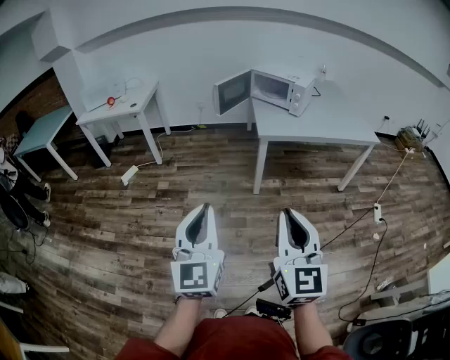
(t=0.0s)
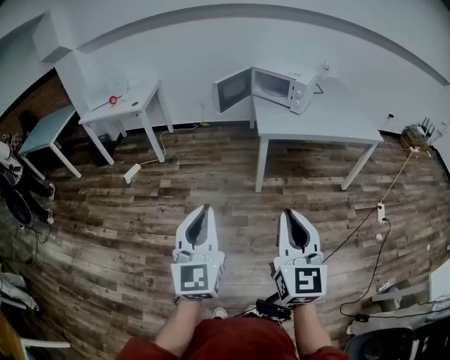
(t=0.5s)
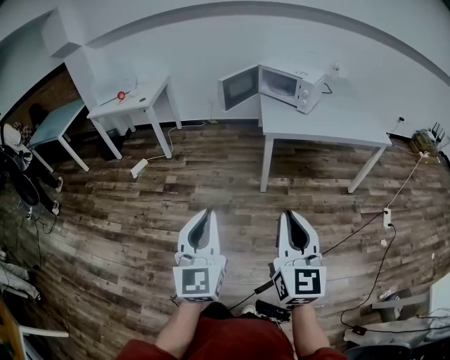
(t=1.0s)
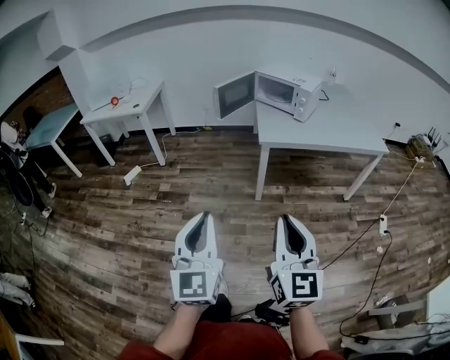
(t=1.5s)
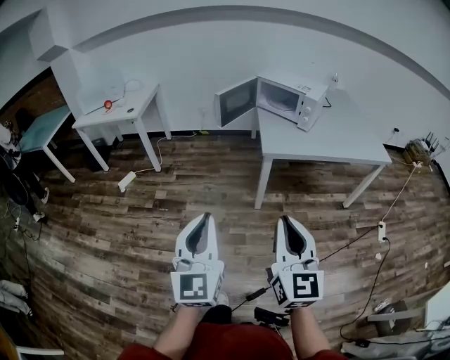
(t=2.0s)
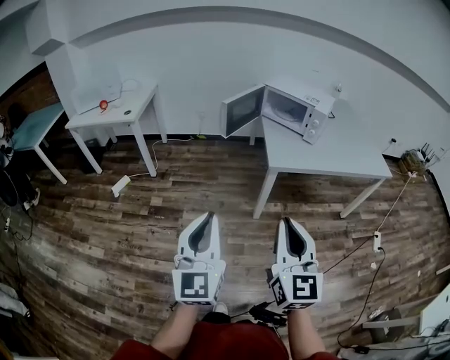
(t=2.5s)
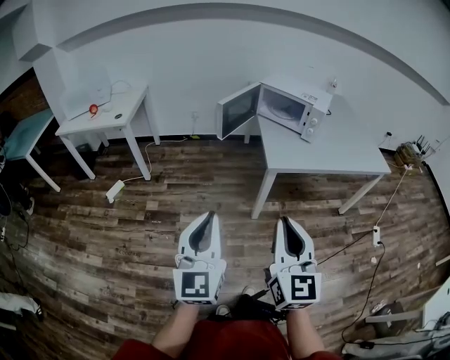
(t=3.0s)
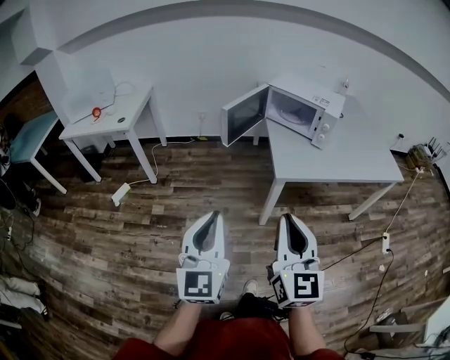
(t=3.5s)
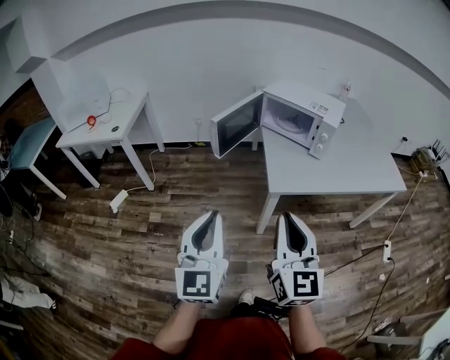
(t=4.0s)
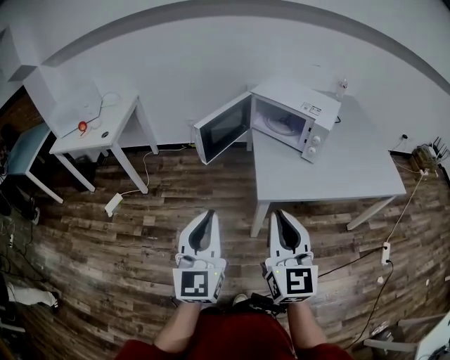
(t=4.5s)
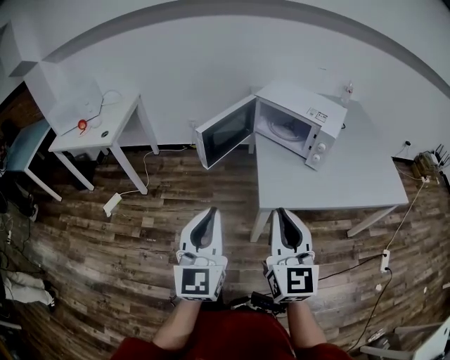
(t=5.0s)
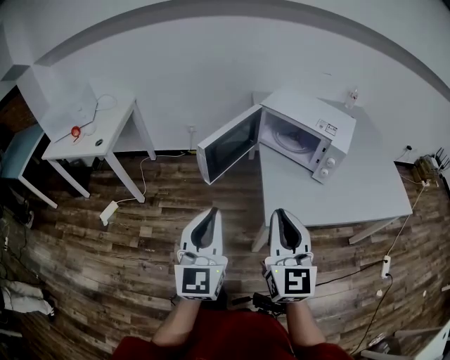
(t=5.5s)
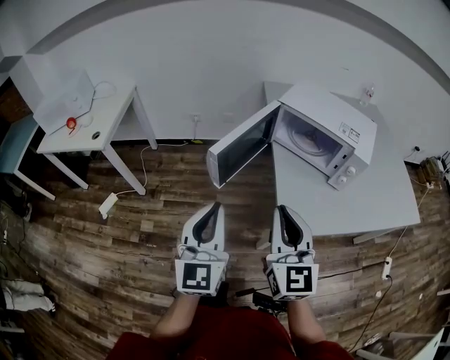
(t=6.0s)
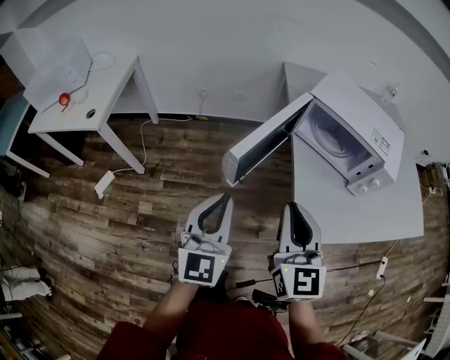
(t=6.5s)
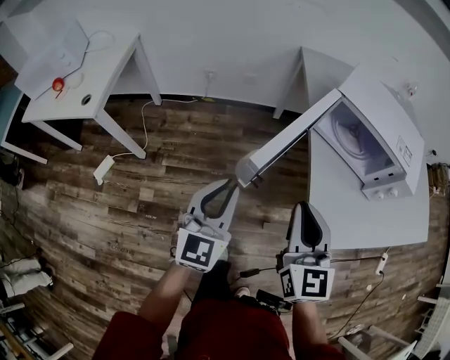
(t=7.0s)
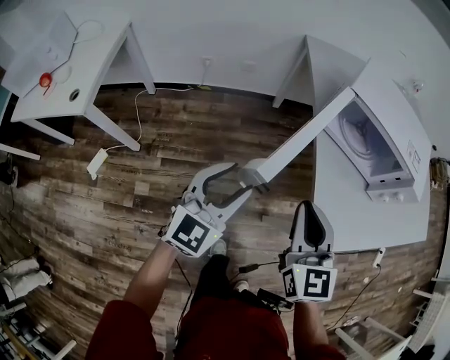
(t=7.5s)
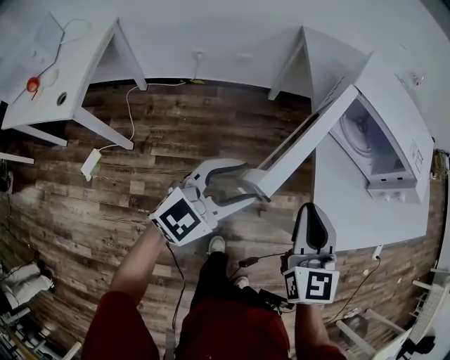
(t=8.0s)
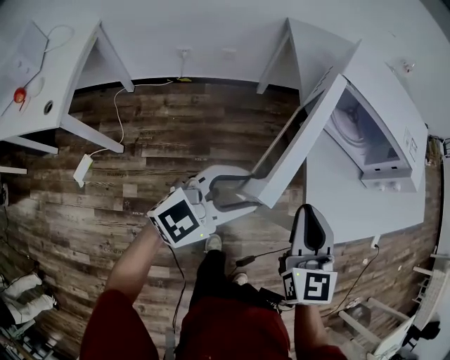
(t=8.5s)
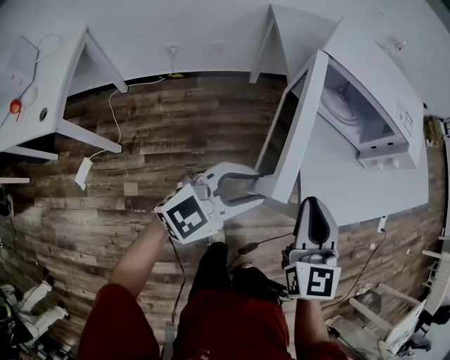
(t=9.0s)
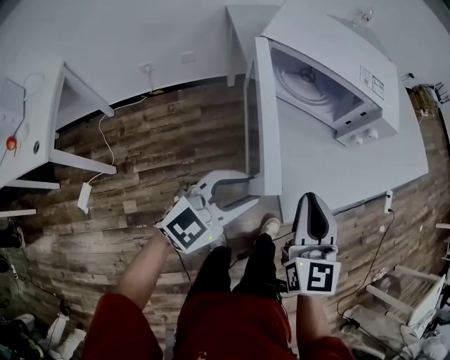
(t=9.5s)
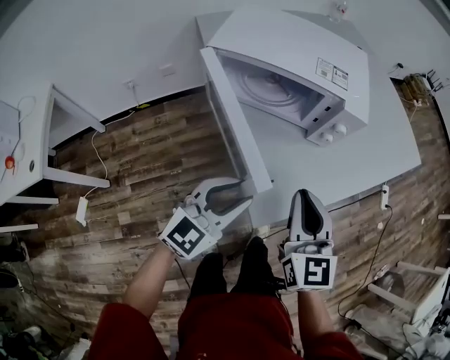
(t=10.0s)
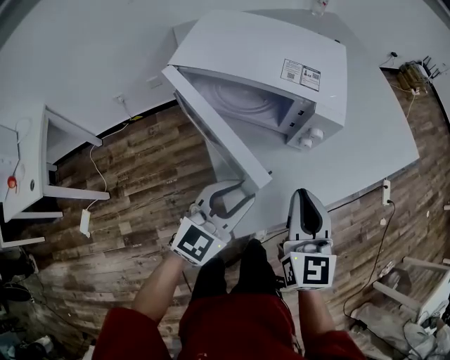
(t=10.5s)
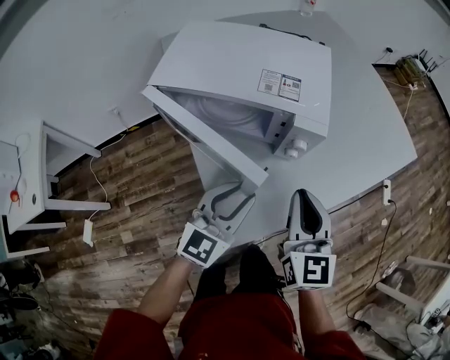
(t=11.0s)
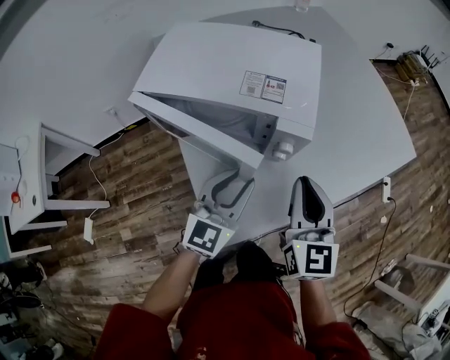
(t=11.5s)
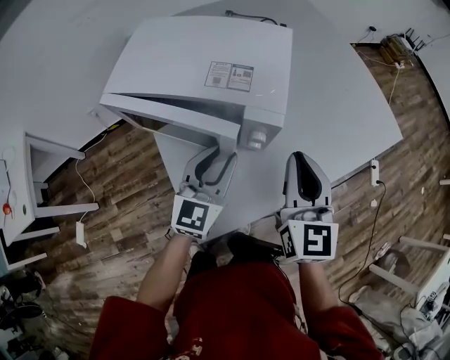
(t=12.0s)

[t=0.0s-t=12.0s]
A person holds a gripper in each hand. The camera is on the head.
t=0.0s to t=2.0s: The grippers both shift forward by roughly 15 cm.
t=2.0s to t=4.0s: Both grippers move forward, roughly 30 cm.
t=4.0s to t=6.0s: Both grippers move forward, approximately 30 cm.
t=6.0s to t=8.0s: The left gripper moves roughly 25 cm, rotates roughly 50 degrees, and opens its fingers. Meanwhile the right gripper shifts by about 25 cm.
t=8.0s to t=10.0s: The grippers both shift to the right by roughly 25 cm. The left gripper closes its fingers.
t=10.0s to t=12.0s: The two grippers go about 25 cm forward and to the right. The left gripper rotates roughly 20 degrees.

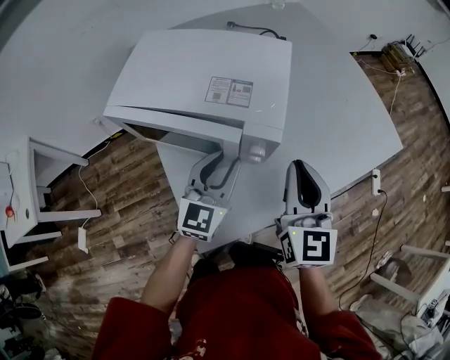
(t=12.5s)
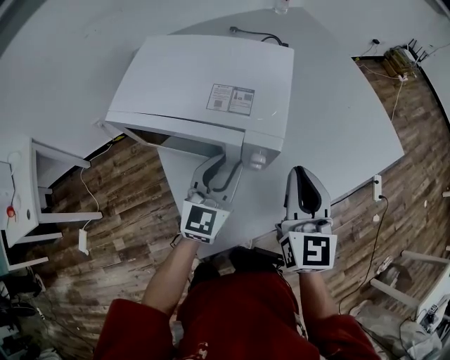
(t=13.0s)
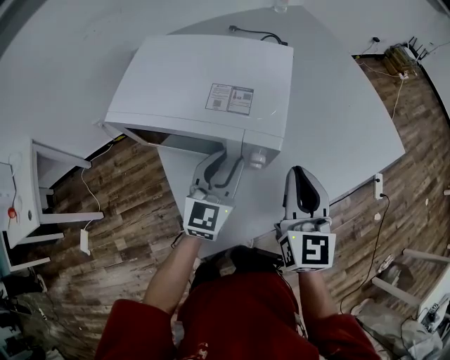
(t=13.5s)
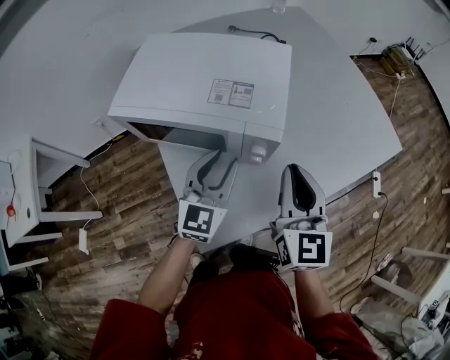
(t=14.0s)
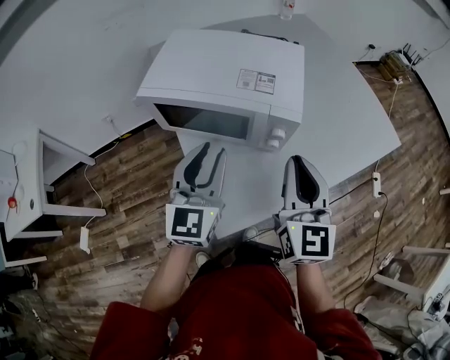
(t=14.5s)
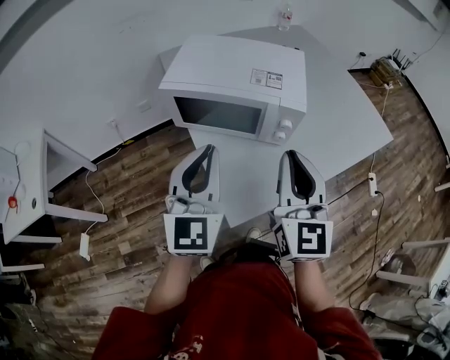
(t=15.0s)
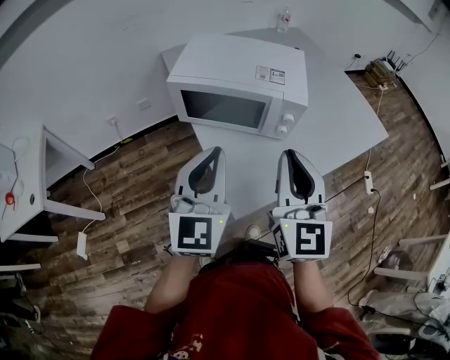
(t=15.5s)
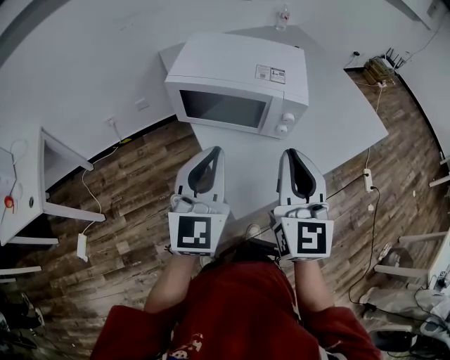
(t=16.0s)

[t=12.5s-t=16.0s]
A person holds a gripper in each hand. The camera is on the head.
t=12.5s to t=14.5s: The left gripper shifts approximately 15 cm to the left, upward and backward, while the right gripper shifts about 10 cm backward and to the left.
t=14.5s to t=16.0s: The right gripper heads backward, to the left and upward, covering about 15 cm, while the left gripper shifts some 15 cm backward, upward and to the left, and closes up.

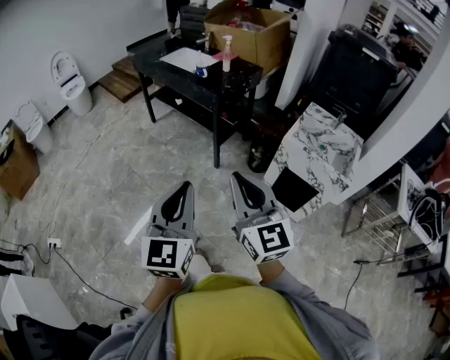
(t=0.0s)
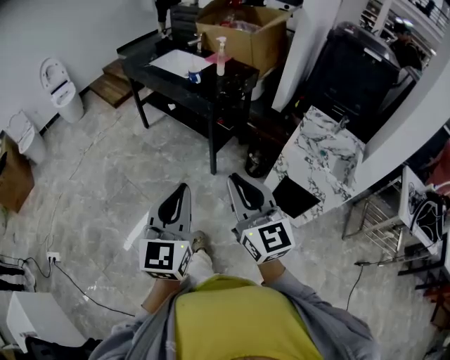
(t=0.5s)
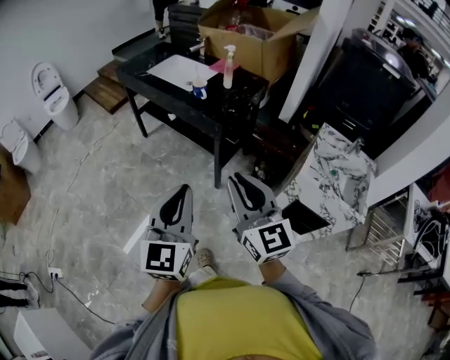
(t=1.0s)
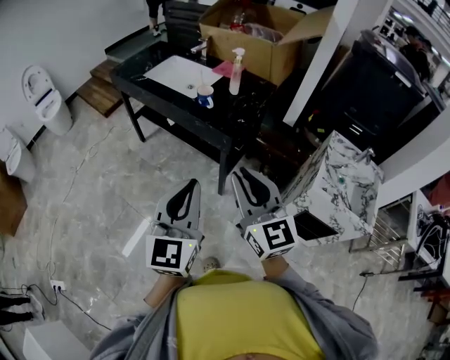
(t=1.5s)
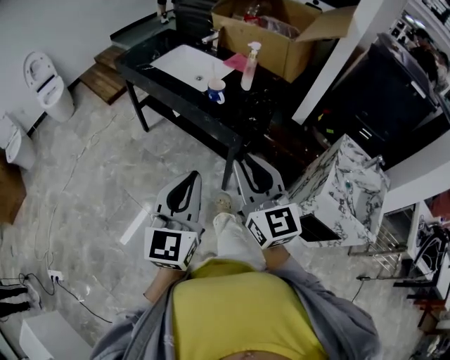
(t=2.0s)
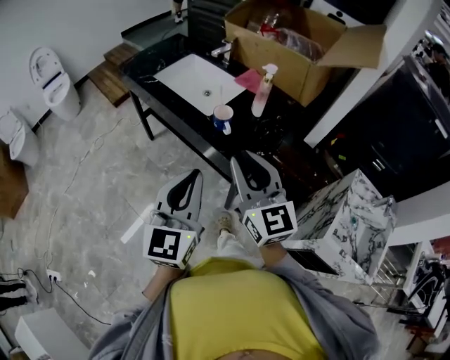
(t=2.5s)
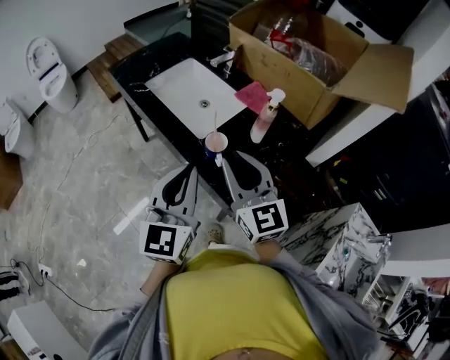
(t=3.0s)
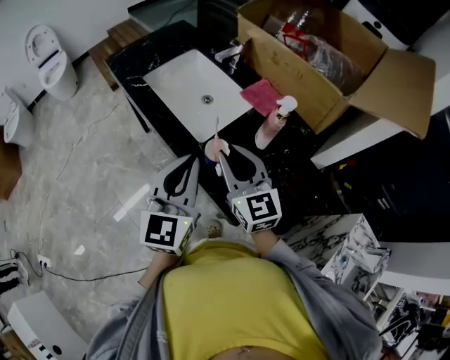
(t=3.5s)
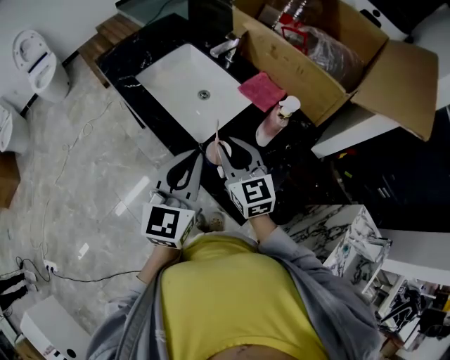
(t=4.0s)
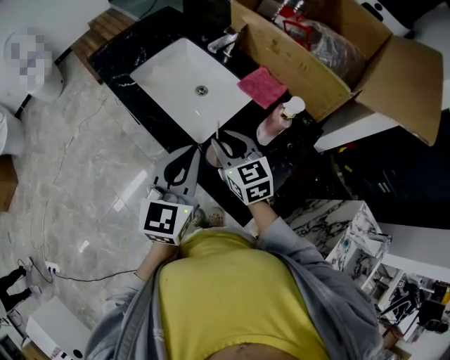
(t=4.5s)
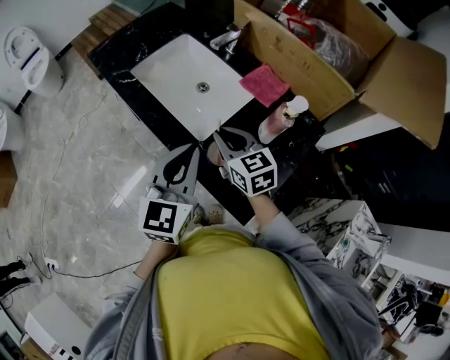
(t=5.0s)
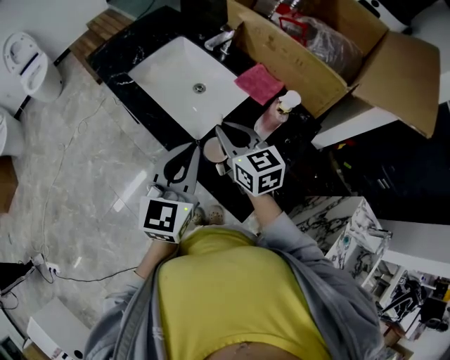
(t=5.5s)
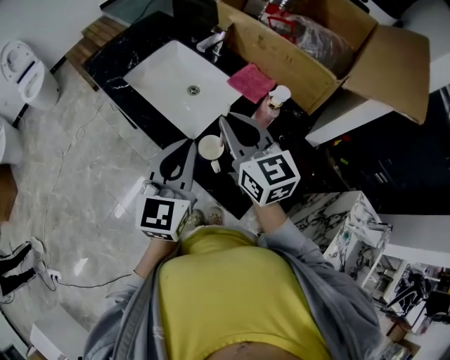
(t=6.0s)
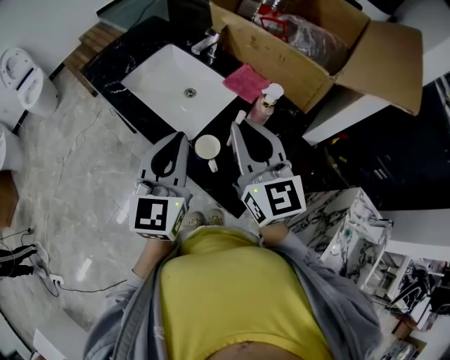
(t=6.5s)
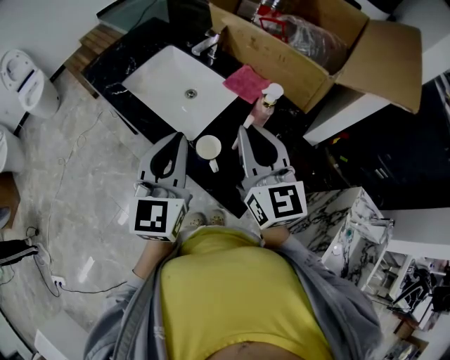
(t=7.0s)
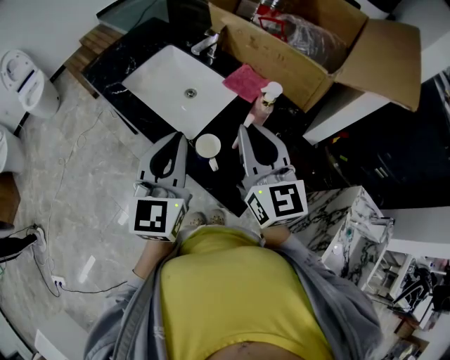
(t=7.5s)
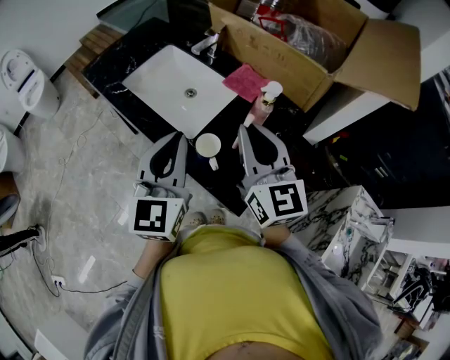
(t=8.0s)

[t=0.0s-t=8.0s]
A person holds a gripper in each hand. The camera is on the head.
t=0.0s to t=2.0s: Both grippers are carried forward, roughly 50 cm.
t=2.0s to t=4.0s: Both grippers are carried forward, roughly 40 cm.
t=4.0s to t=6.0s: The right gripper shifts about 10 cm upward.
t=6.0s to t=8.0s: The right gripper travels backward by some 5 cm.

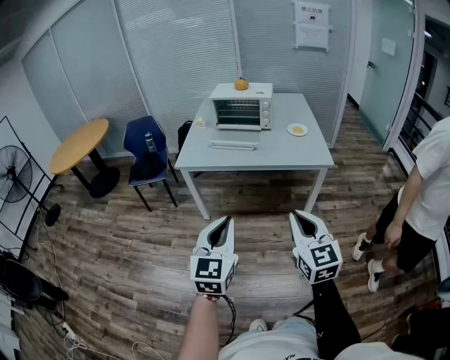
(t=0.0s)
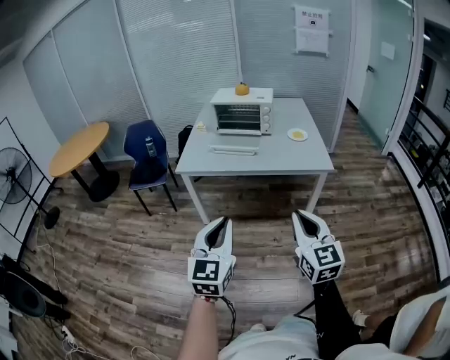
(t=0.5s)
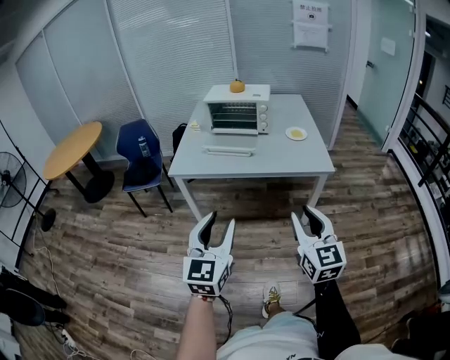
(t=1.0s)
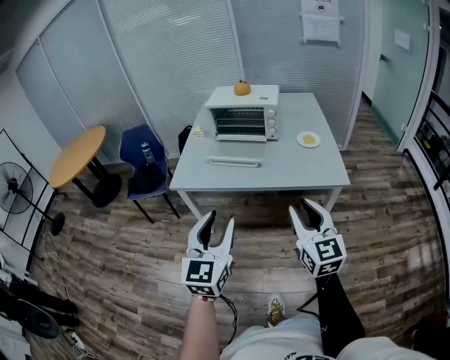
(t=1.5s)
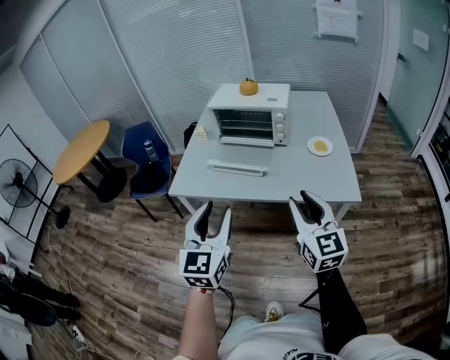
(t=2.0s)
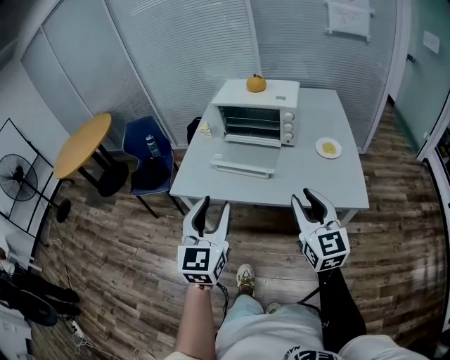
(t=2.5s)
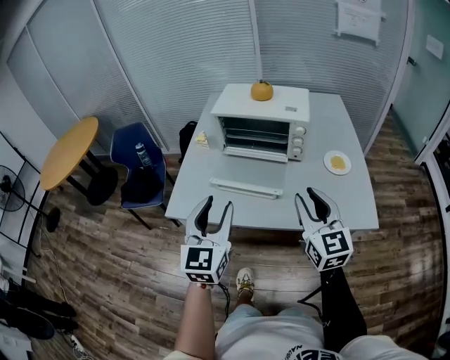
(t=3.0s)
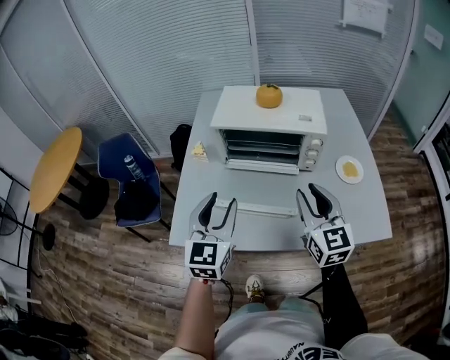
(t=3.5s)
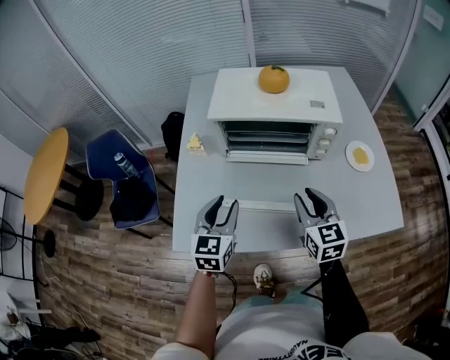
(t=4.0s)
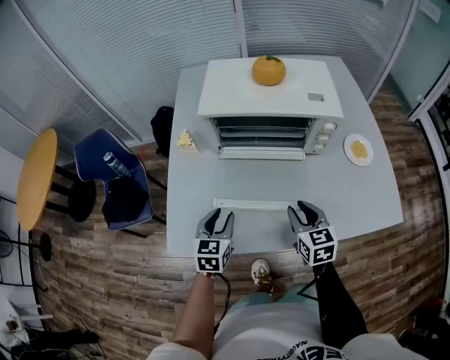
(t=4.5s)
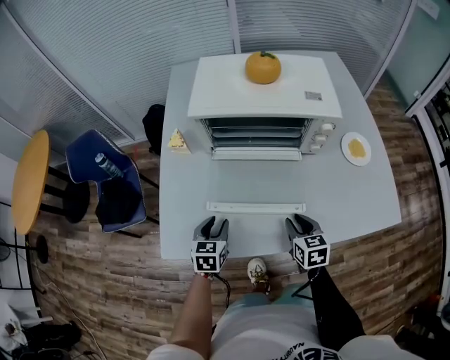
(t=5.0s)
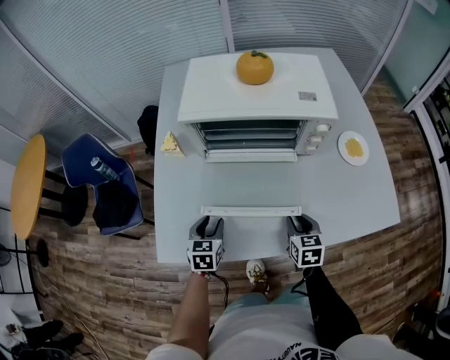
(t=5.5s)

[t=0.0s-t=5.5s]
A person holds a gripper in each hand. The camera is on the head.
t=0.0s to t=2.0s: The two grippers go about 30 cm forward. The left gripper opens up; the right gripper opens its fingers.
t=2.0s to t=3.5s: The two grippers go some 30 cm forward.
t=3.5s to t=5.5s: Both grippers travel together downward, about 30 cm. The right gripper tilts its fingers about 40 degrees downward, while the left gripper tips its fingers downward by roughly 40 degrees.
